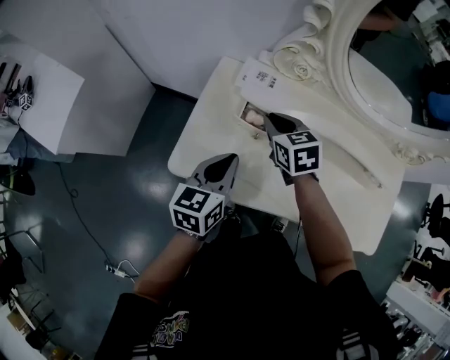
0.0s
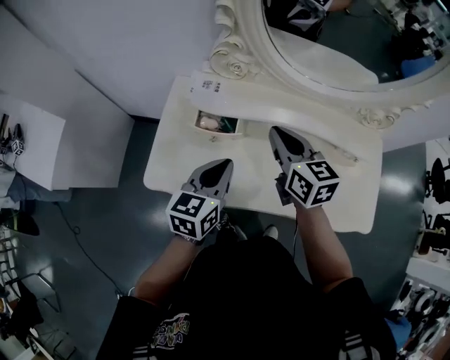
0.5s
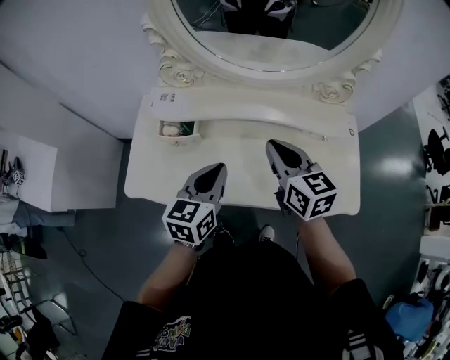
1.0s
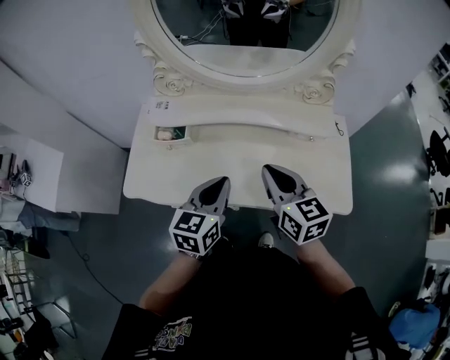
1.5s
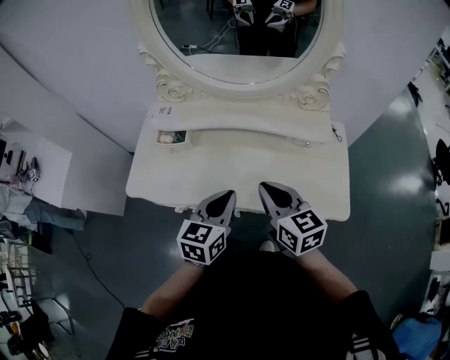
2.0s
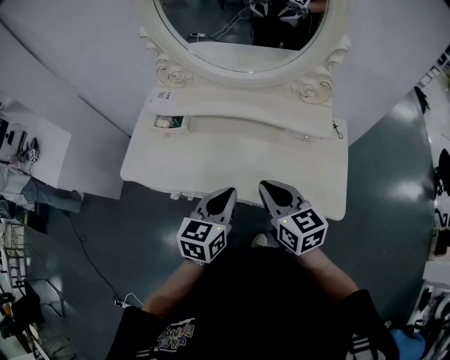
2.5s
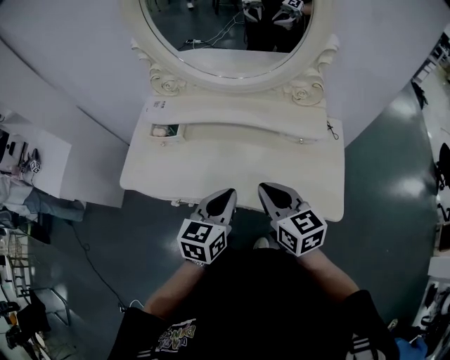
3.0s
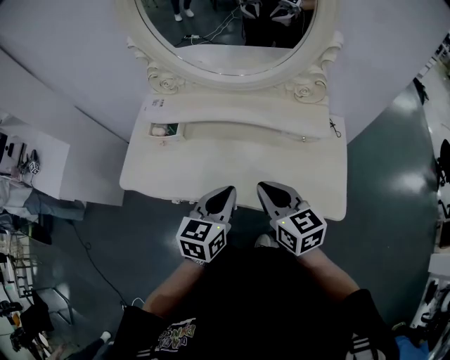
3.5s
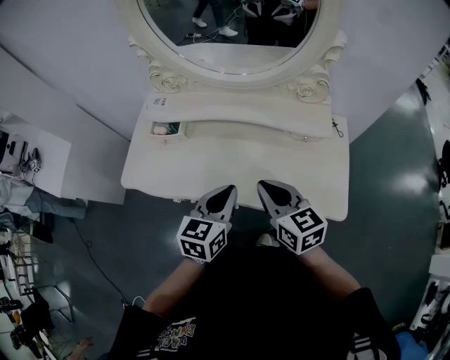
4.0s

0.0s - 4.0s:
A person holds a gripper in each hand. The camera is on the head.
0.0s - 2.0s: The grippers both shift to the right and backward by some 40 cm. The right gripper swivels some 30 degrees.
2.0s - 4.0s: The grippers make only small movements.

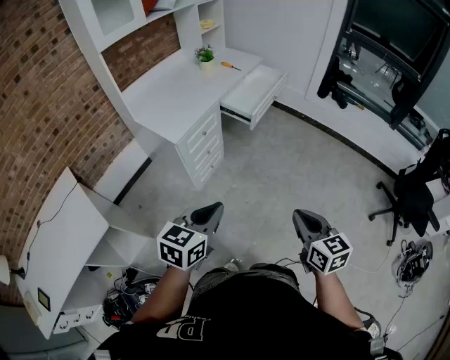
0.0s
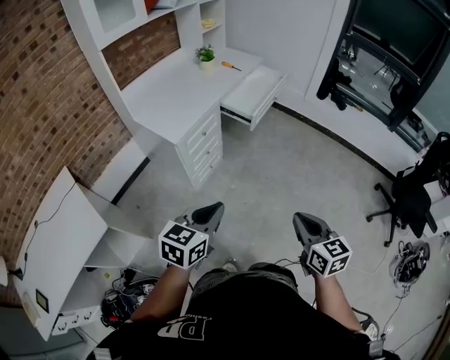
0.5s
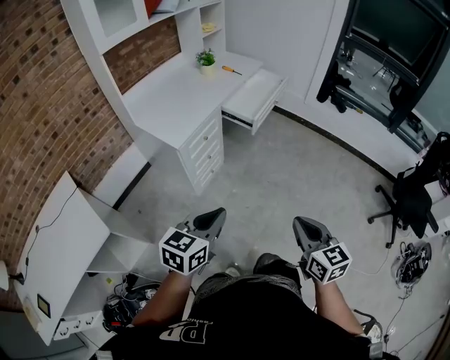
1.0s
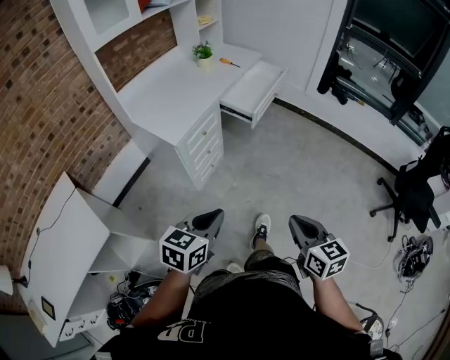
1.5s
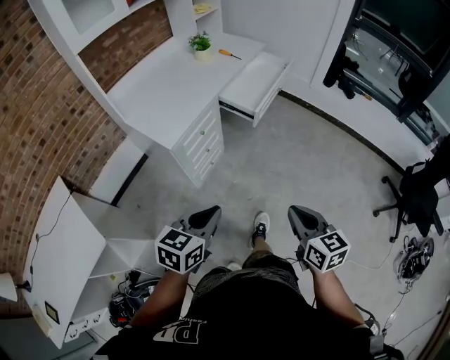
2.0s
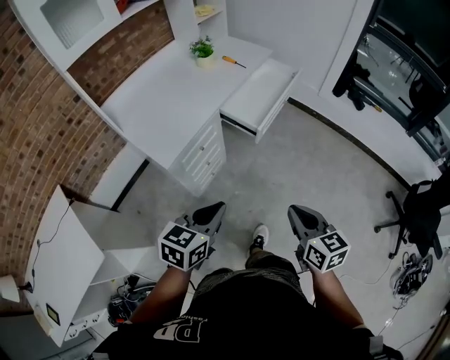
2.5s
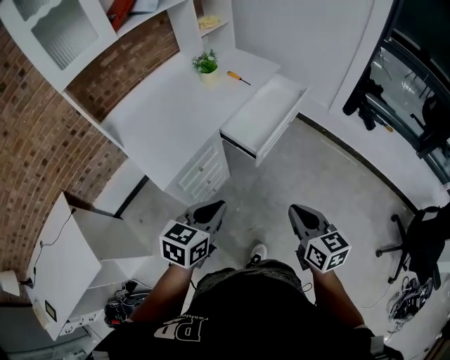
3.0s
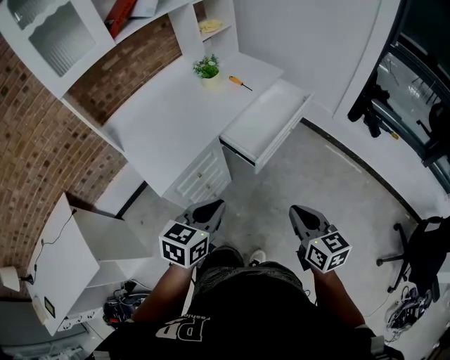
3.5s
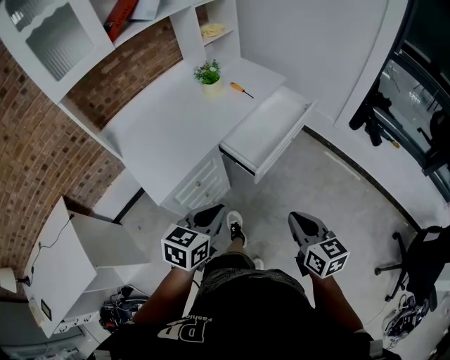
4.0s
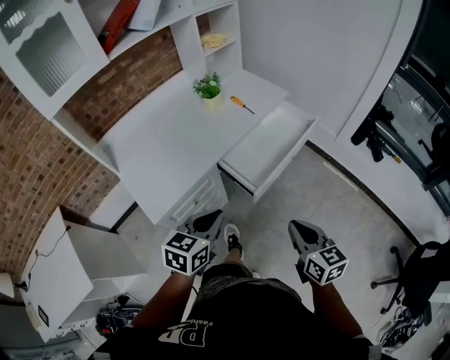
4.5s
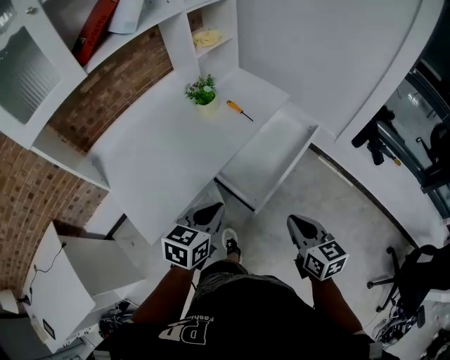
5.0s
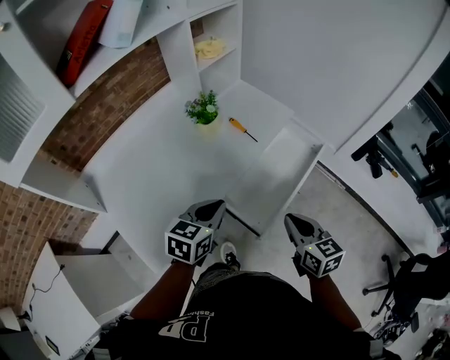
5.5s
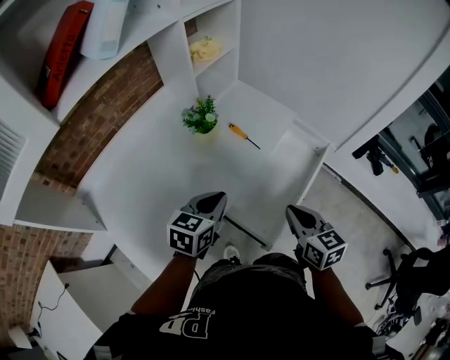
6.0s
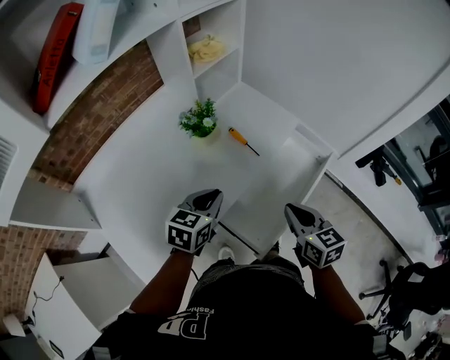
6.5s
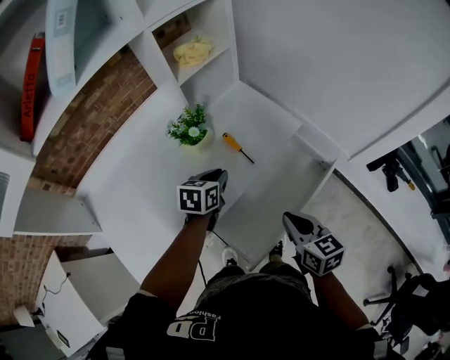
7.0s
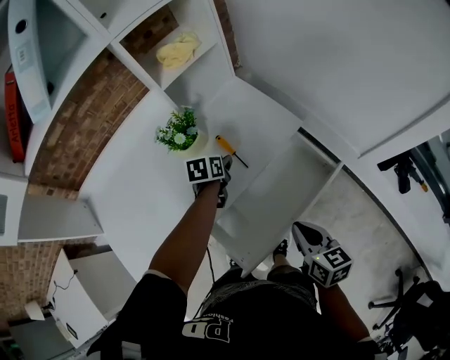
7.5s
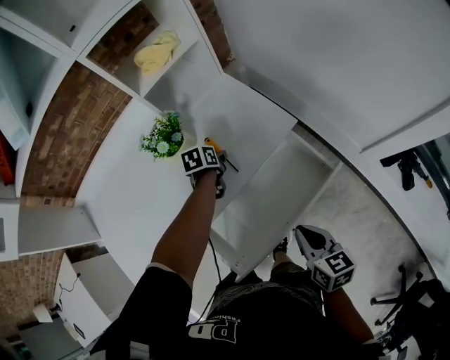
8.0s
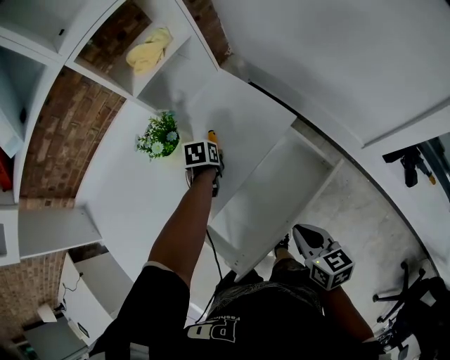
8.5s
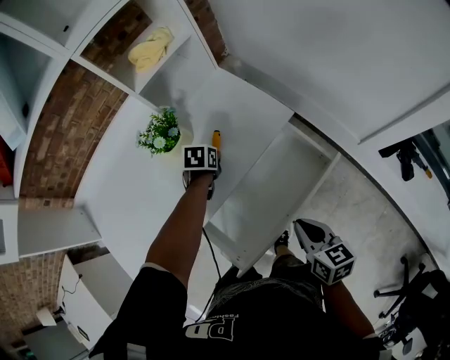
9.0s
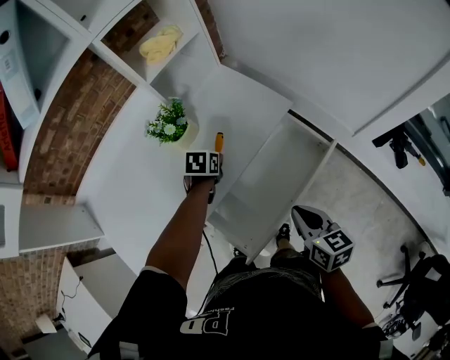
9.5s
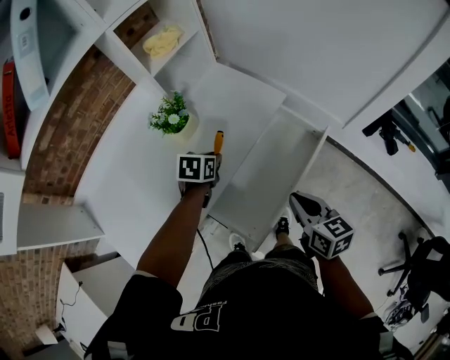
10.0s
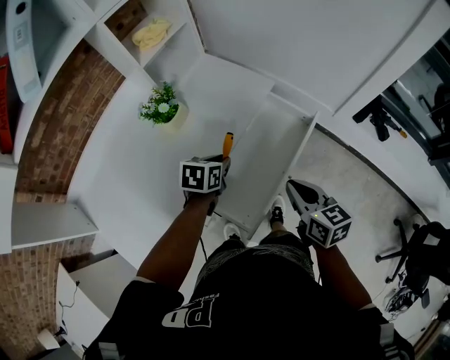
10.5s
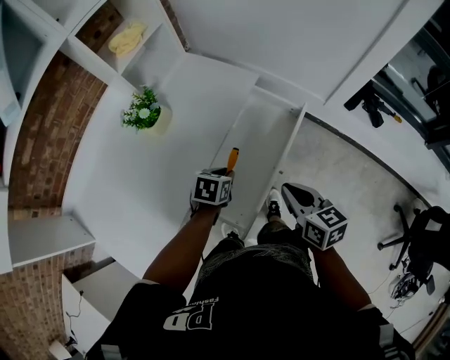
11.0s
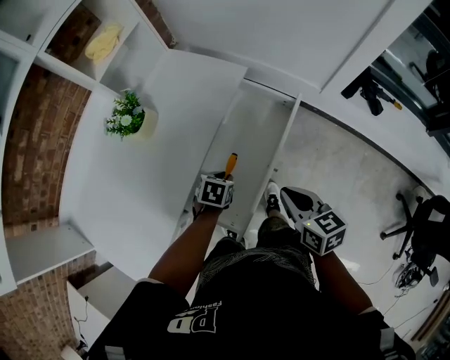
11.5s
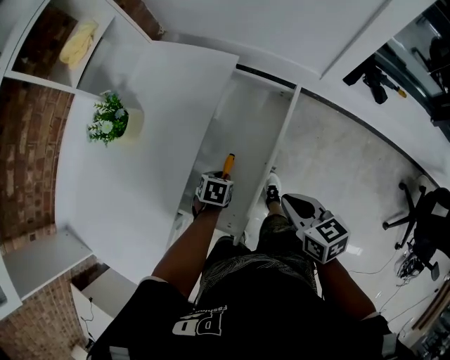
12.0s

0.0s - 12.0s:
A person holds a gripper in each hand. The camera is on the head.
0.0s - 2.0s: The two grippers go roughly 10 cm forward.
2.0s - 4.0s: Both grippers move forward, approximately 30 cm.
4.0s - 6.0s: Both grippers travel together forward, approximately 40 cm.
6.0s - 8.0s: The right gripper heads to the right, forward and downward, covering some 25 cm; the left gripper moves forward and downward, some 35 cm, turns by approximately 50 degrees, and opens its fingers.
8.0s - 10.0s: The right gripper shifts some 10 cm to the left and backward. Meanwhile the left gripper travels backward and upward by approximately 15 cm, and swivels some 30 degrees.
10.0s - 12.0s: The left gripper heads downward, to the right and backward, covering approximately 25 cm, and swivels approximately 30 degrees; the right gripper moves downward and to the right, roughly 10 cm.

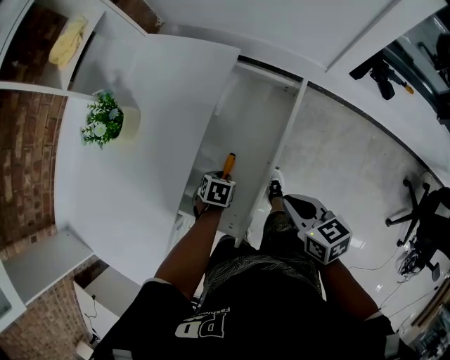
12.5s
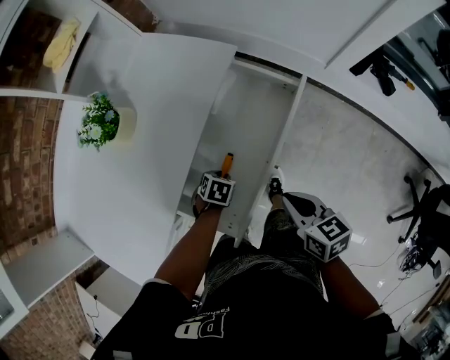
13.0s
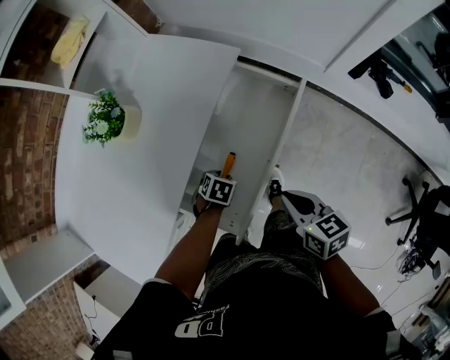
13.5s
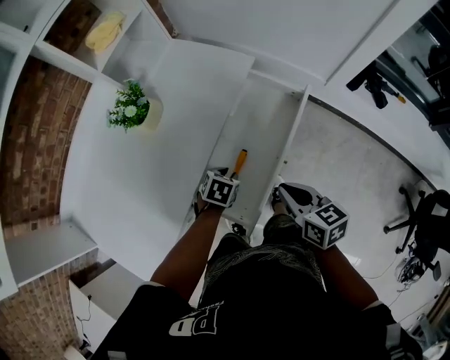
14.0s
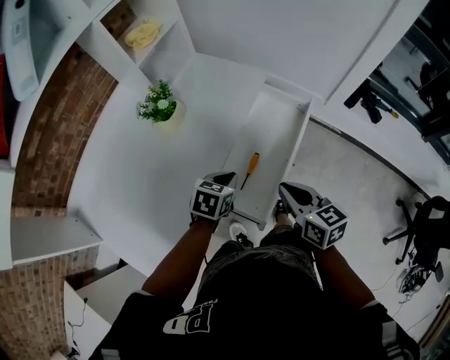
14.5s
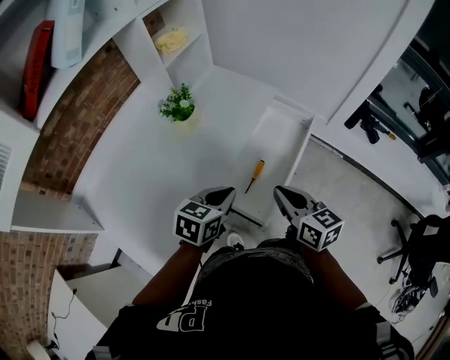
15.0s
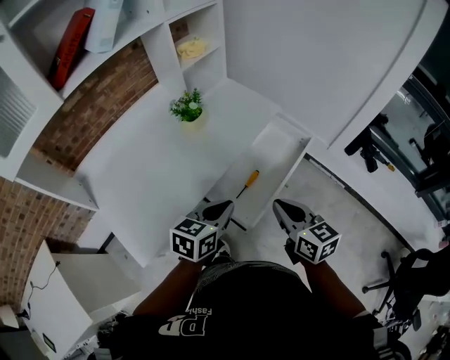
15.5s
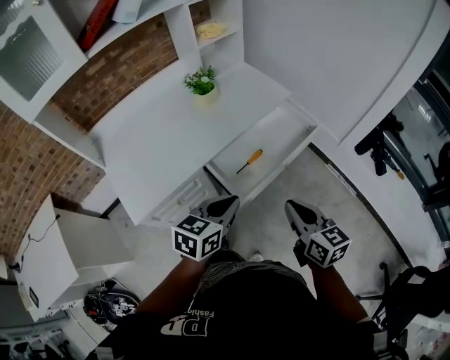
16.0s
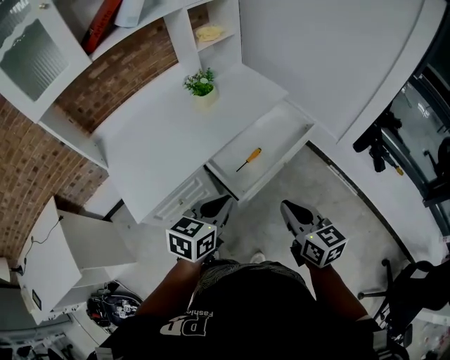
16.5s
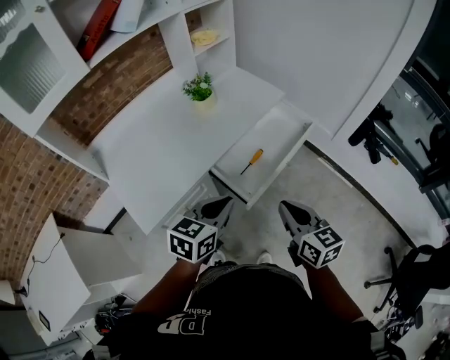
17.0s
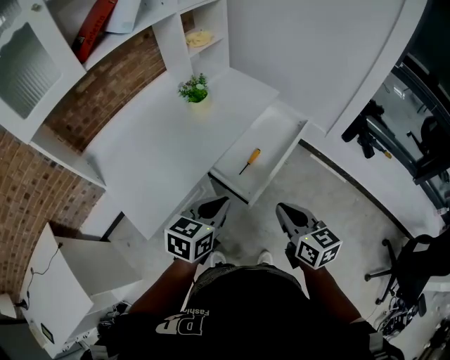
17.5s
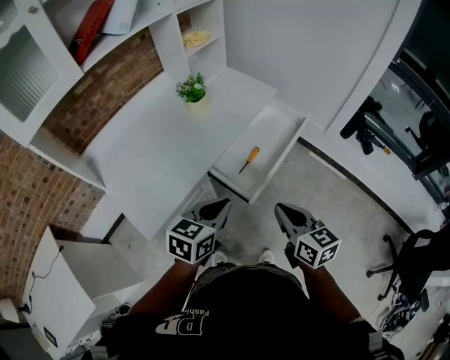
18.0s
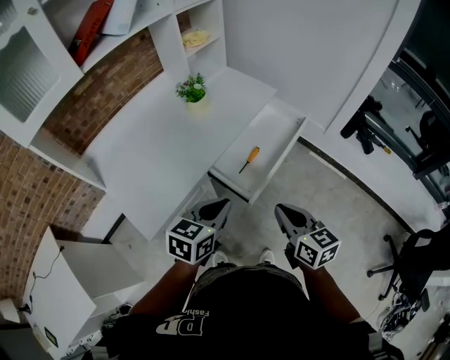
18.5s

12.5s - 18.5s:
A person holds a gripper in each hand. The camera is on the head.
12.5s - 14.5s: The right gripper moves about 15 cm. Meanwhile the left gripper shifts approximately 20 cm upward, and turns by about 30 degrees.
14.5s - 16.5s: The left gripper moves backward and upward, about 30 cm, and swivels about 30 degrees. The right gripper moves backward and upward, about 20 cm, and swivels about 20 degrees.
16.5s - 18.5s: The two grippers go some 5 cm to the left.

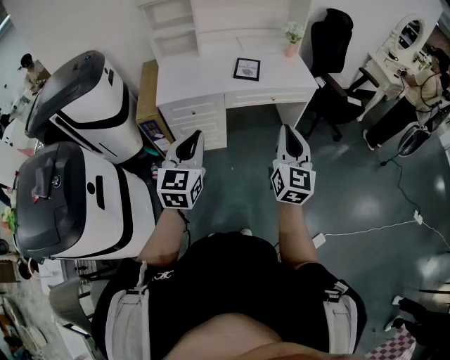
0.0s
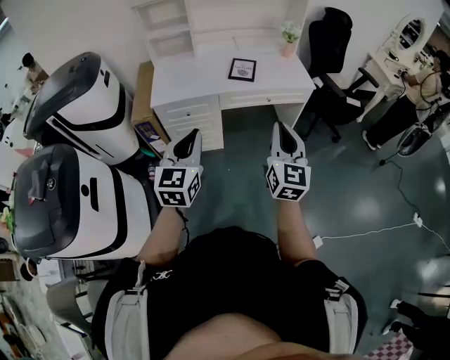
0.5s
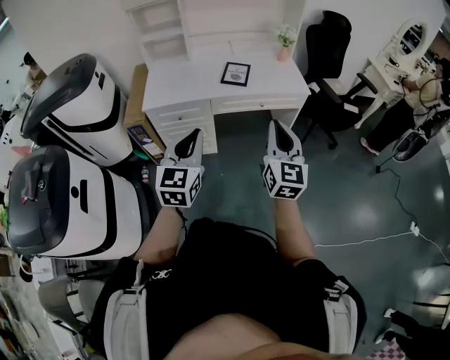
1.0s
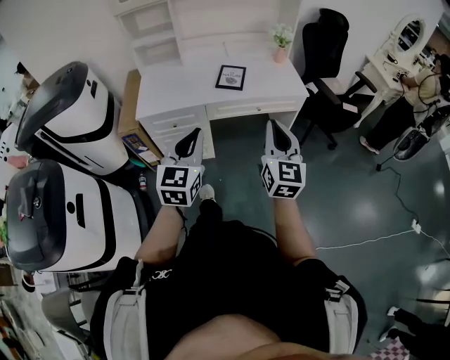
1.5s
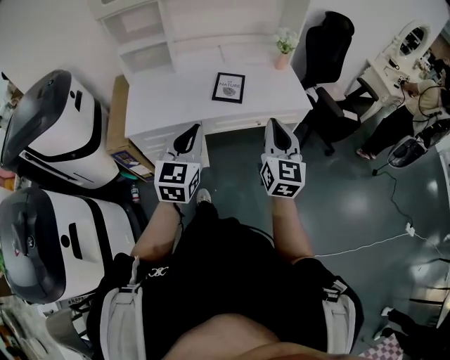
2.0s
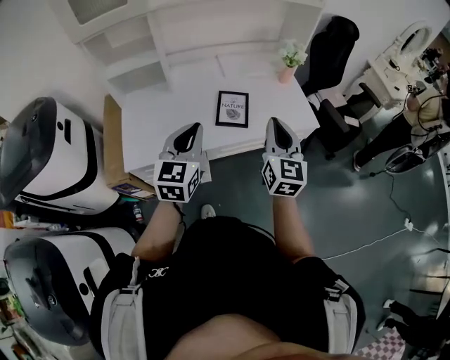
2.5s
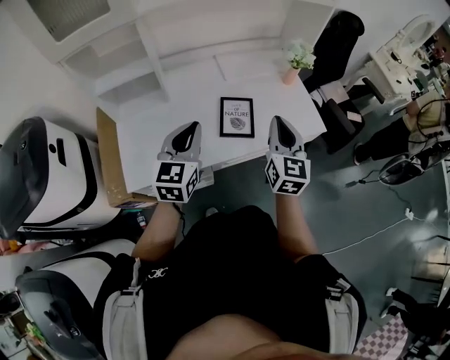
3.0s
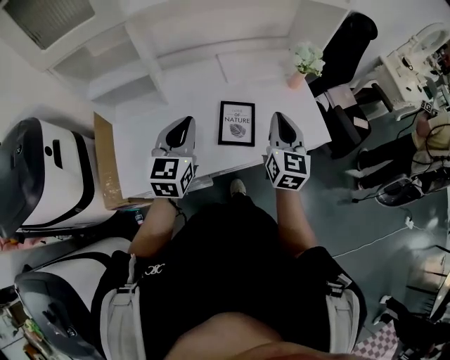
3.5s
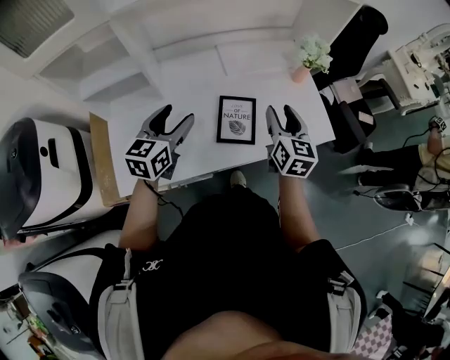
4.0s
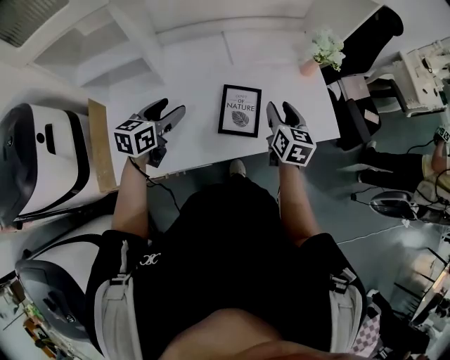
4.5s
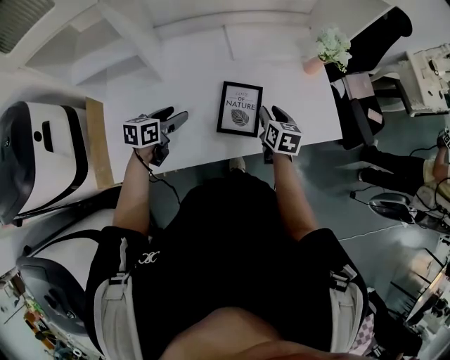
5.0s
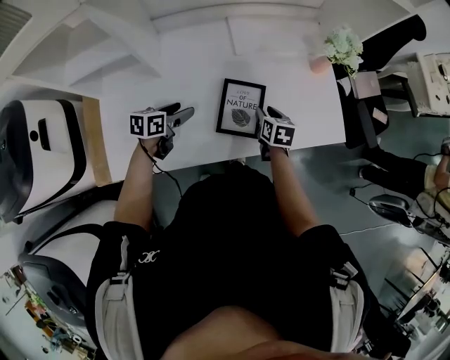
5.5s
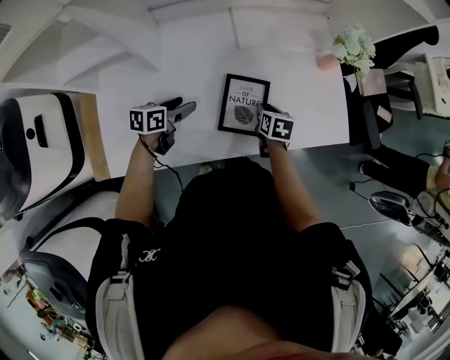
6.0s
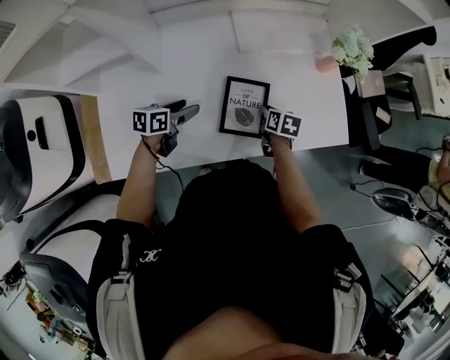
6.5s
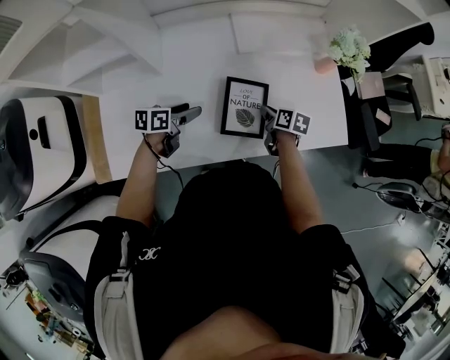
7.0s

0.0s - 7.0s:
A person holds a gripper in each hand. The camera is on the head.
0.0s - 2.0s: The two grippers go some 25 cm forward.
2.0s - 3.5s: Both grippers move forward, some 35 cm.
3.5s - 5.0s: The right gripper goes roughly 25 cm downward and forward, tips its fingers downward by roughly 30 degrees, and opens. Meanwhile the left gripper moves downward, approximately 20 cm, swivels some 40 degrees, and opens.
5.0s - 7.0s: The left gripper heads downward, covering some 5 cm, while the right gripper goes approximately 10 cm downward, and swivels some 30 degrees.
